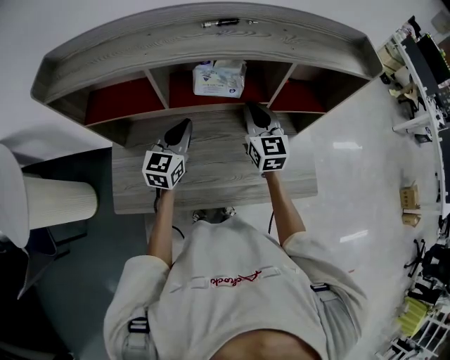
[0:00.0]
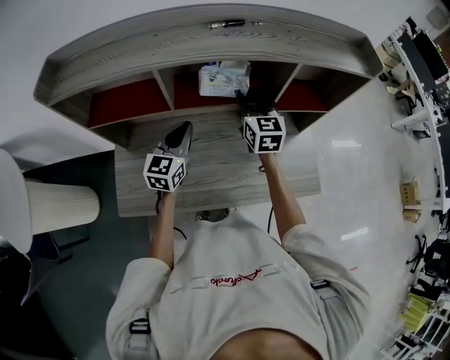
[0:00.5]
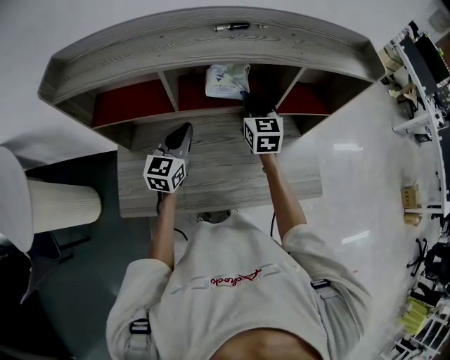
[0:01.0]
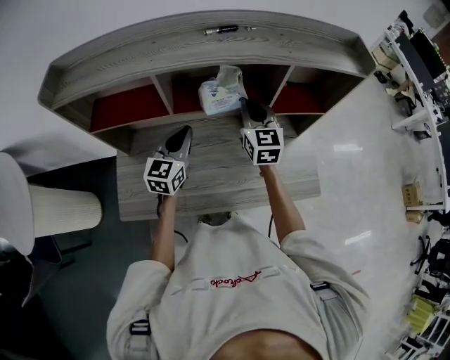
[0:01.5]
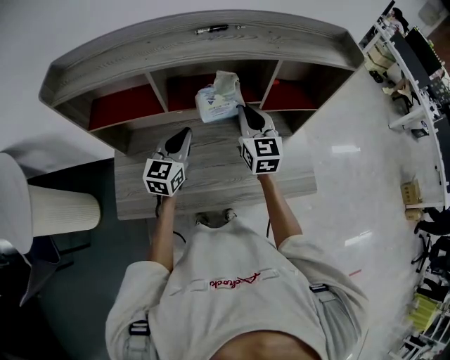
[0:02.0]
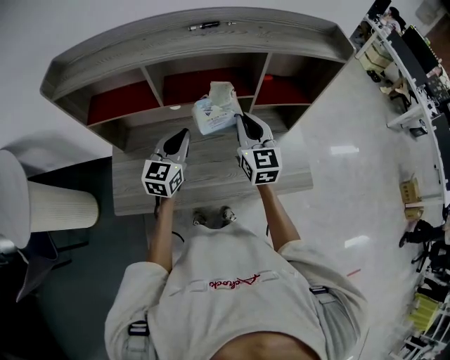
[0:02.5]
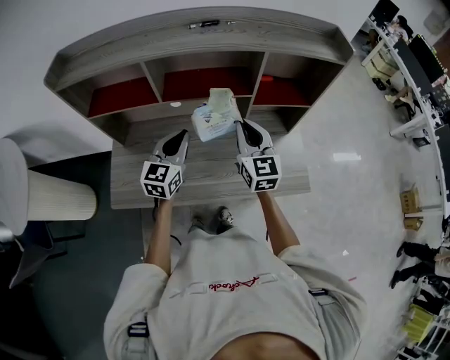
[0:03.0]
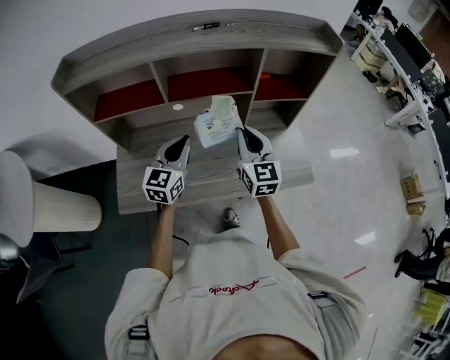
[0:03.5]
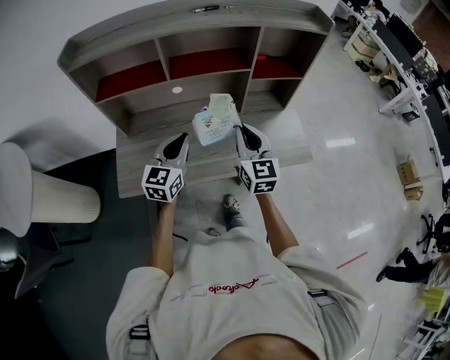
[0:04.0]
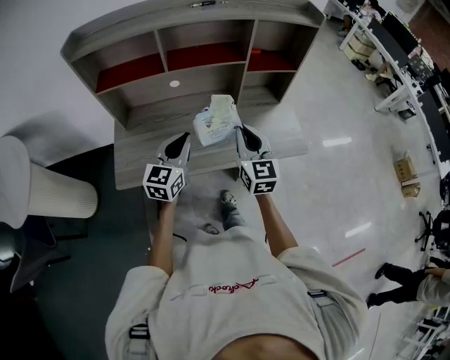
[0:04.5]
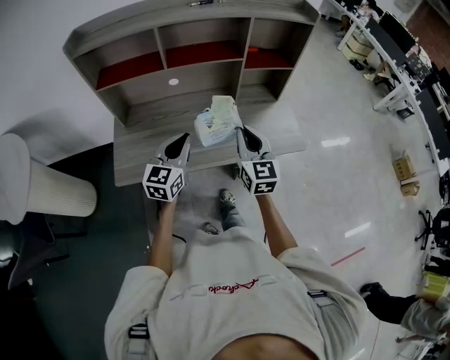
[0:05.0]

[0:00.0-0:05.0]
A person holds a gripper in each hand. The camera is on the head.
0:00.0 to 0:02.5: The two grippers go roughly 5 cm backward. The right gripper opens, then closes once more.
0:02.5 to 0:05.0: Both grippers move backward, some 20 cm.

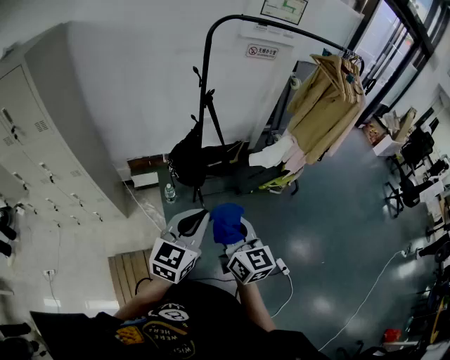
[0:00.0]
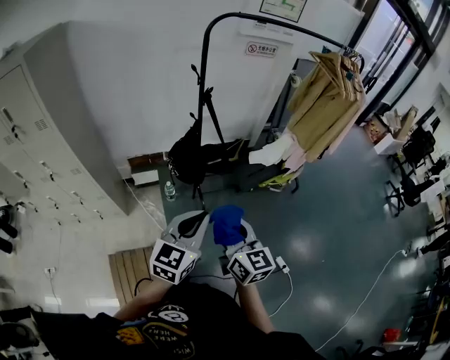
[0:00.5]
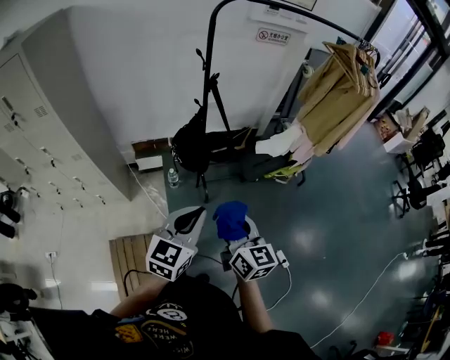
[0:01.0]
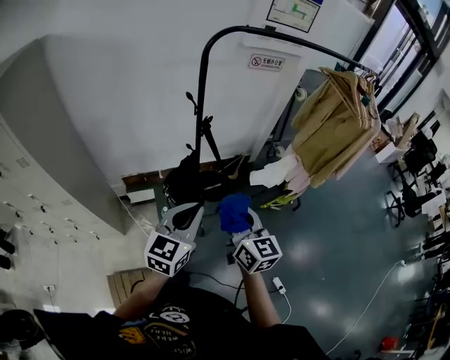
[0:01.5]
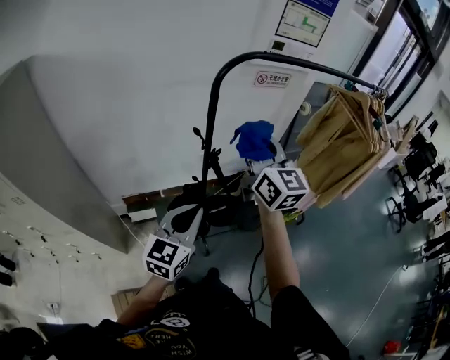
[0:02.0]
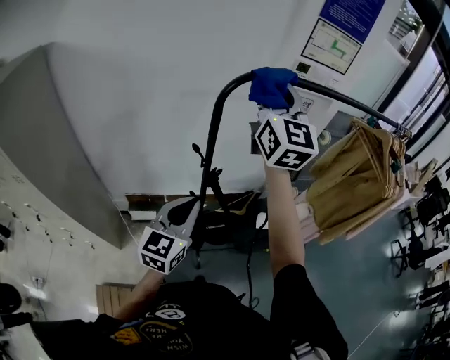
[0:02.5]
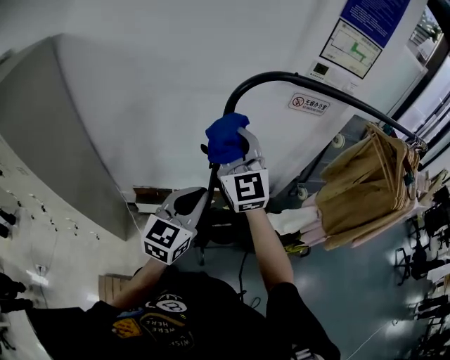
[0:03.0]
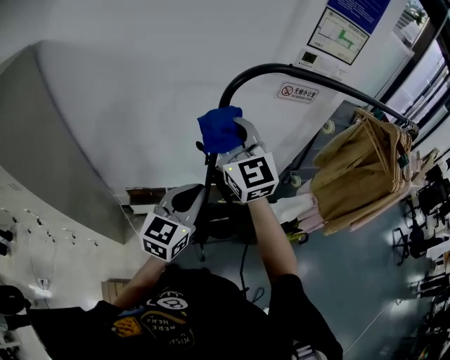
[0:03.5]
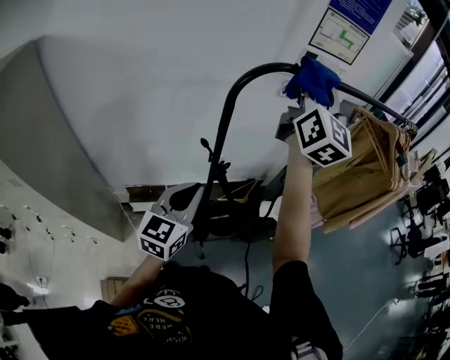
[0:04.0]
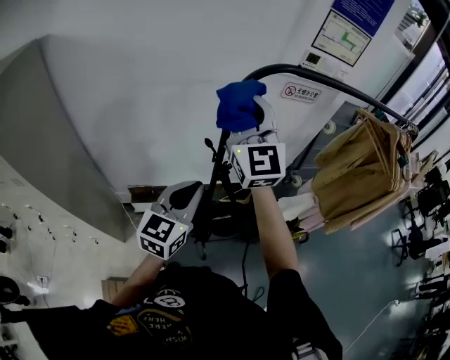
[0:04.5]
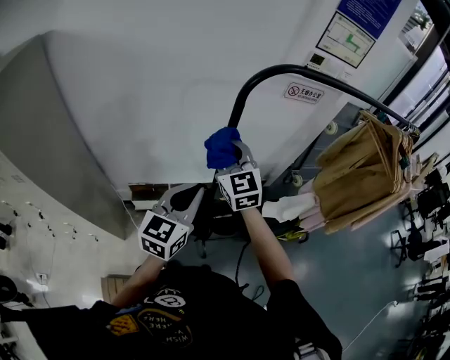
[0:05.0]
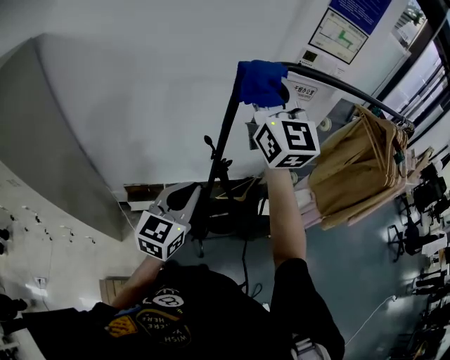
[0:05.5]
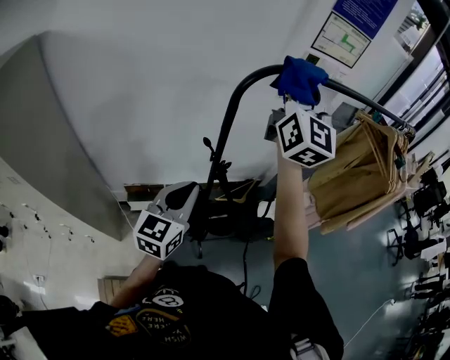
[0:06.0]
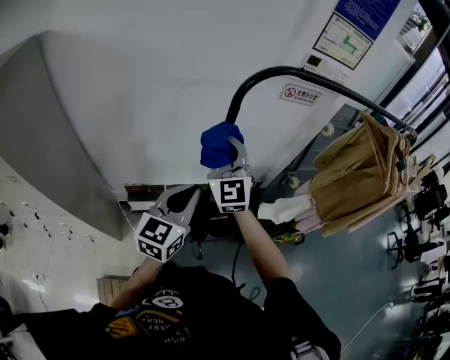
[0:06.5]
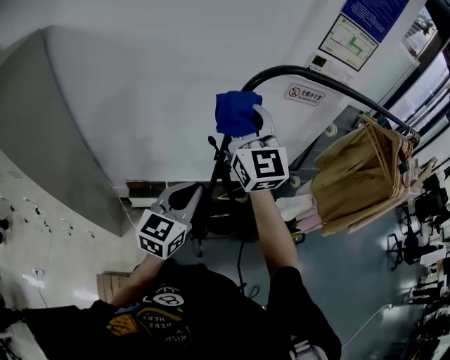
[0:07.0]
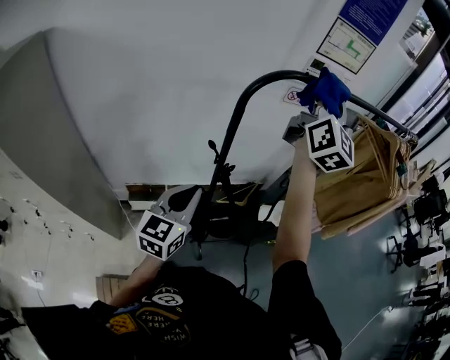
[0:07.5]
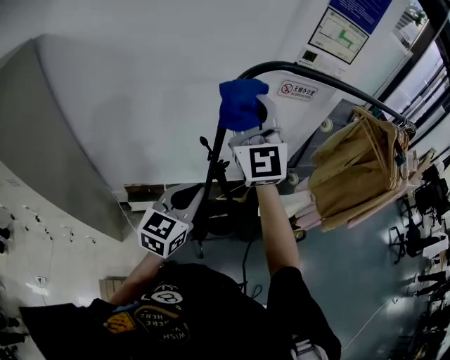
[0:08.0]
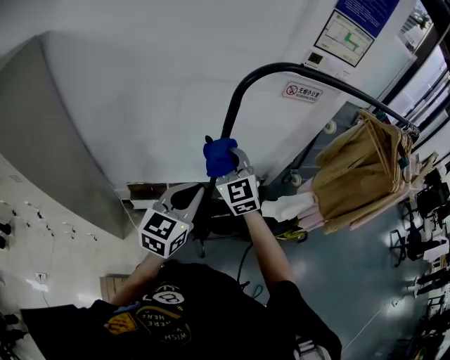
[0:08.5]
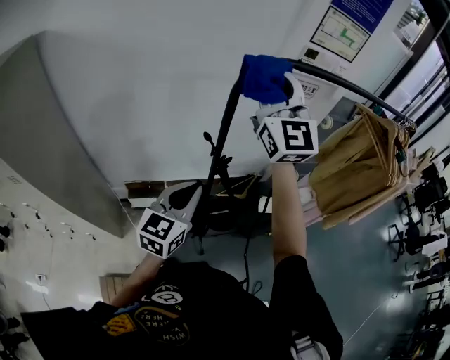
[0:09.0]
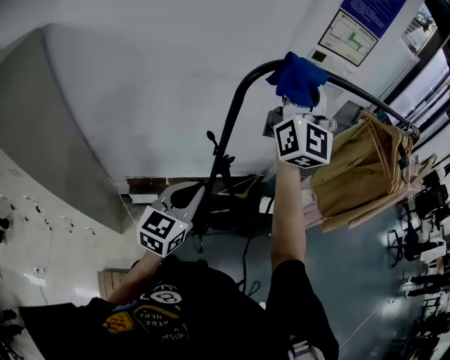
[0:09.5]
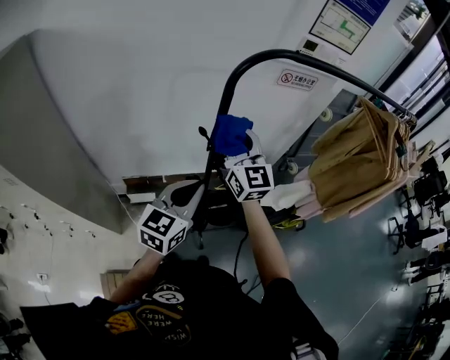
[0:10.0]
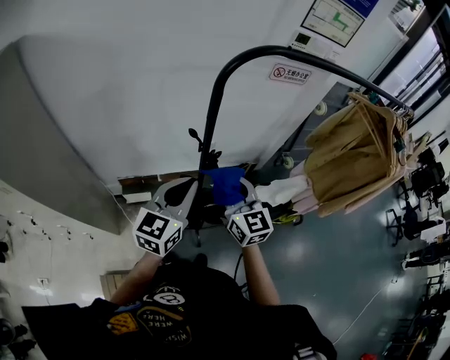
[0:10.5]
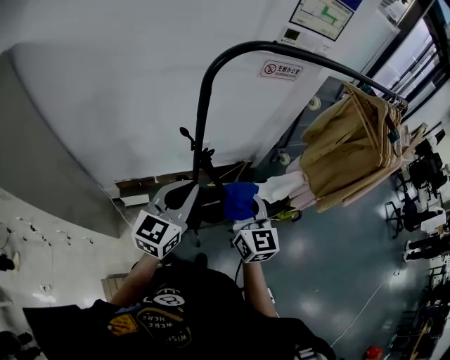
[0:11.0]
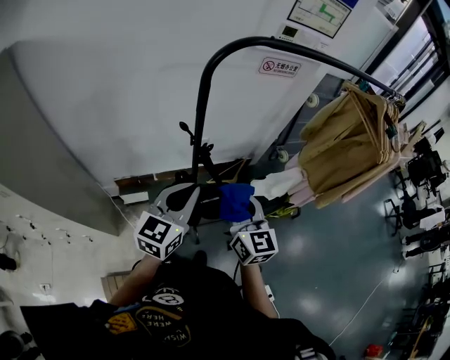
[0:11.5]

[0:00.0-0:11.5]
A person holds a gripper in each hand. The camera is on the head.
0:00.0 to 0:02.0: The right gripper goes roughly 50 cm forward and upward. The left gripper shifts some 35 cm forward.
0:02.0 to 0:04.0: The right gripper swings up and down, approximately 20 cm each way, with 2 reversals, and swivels approximately 20 degrees. The left gripper heads forward, covering some 10 cm.
0:04.0 to 0:06.0: The right gripper goes some 5 cm to the left, and reaches roughly 25 cm downward, then returns.
0:06.0 to 0:07.5: The right gripper goes approximately 5 cm to the right, and reaches approximately 25 cm downward, then returns.
0:07.5 to 0:09.5: The right gripper moves to the left, about 10 cm, and goes downward and returns, about 30 cm each way.
0:09.5 to 0:11.5: The left gripper moves roughly 5 cm. Meanwhile the right gripper shifts roughly 35 cm downward and backward, and angles its fingers downward, by approximately 40 degrees.

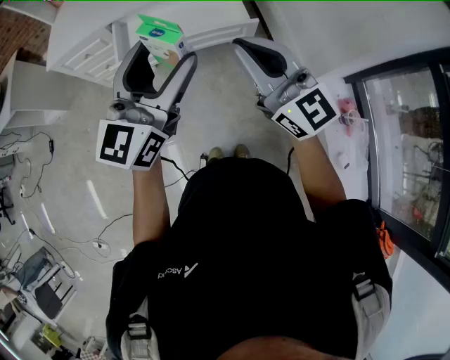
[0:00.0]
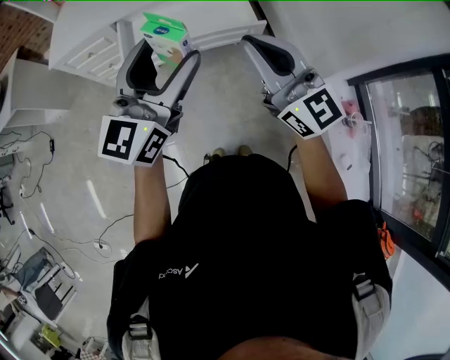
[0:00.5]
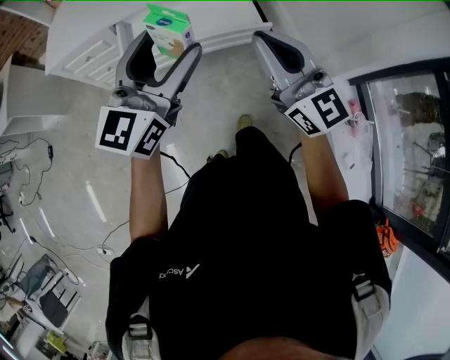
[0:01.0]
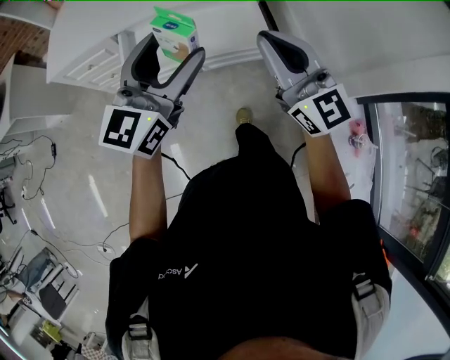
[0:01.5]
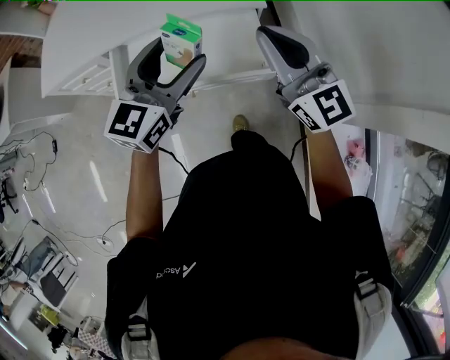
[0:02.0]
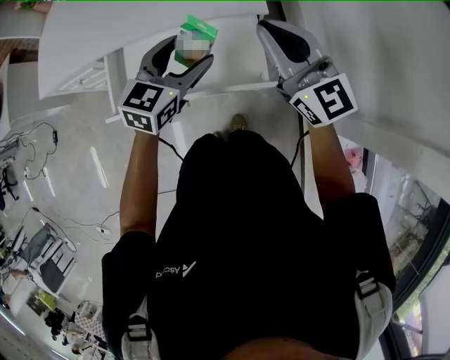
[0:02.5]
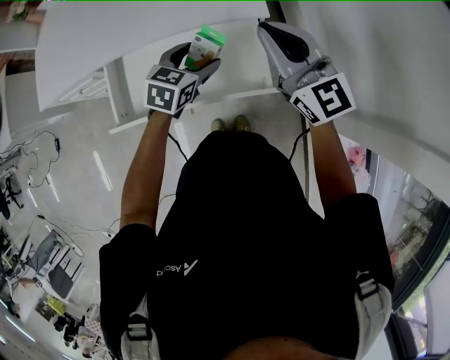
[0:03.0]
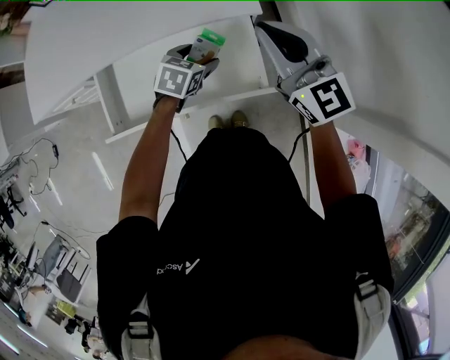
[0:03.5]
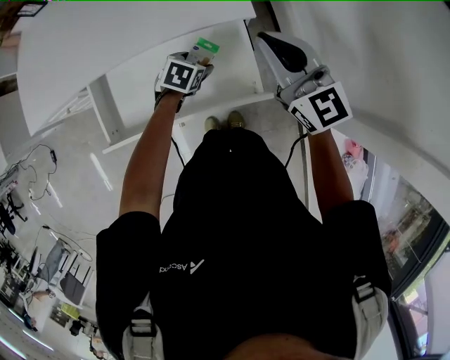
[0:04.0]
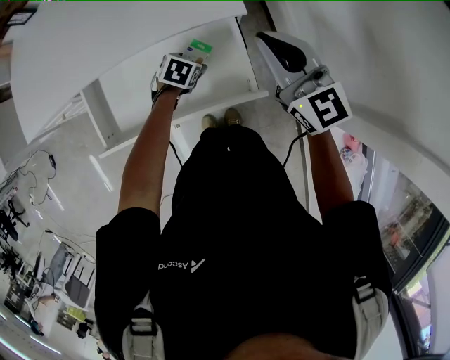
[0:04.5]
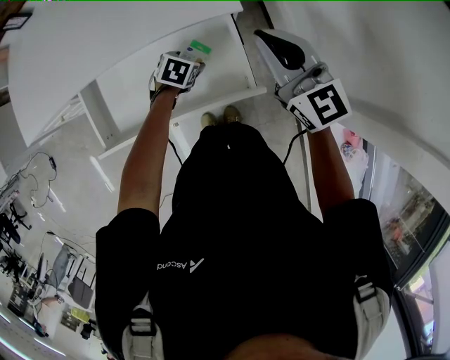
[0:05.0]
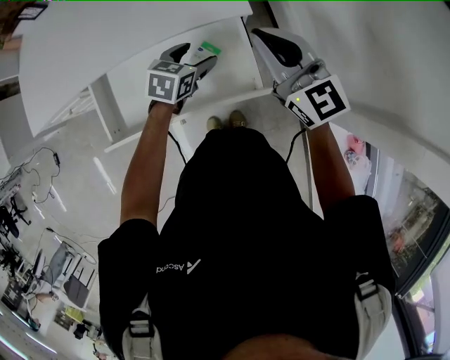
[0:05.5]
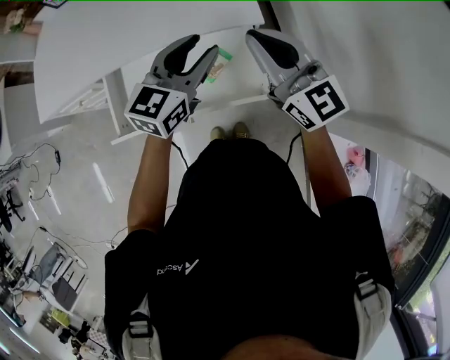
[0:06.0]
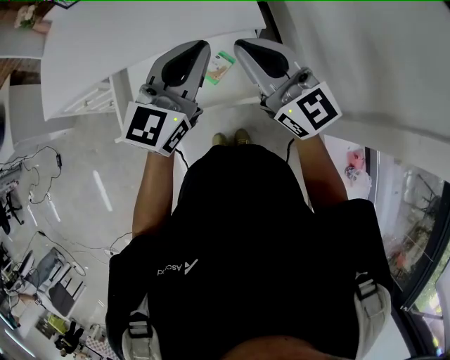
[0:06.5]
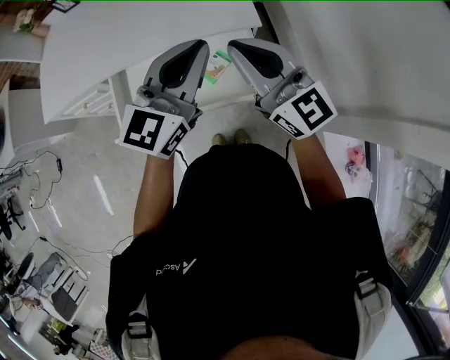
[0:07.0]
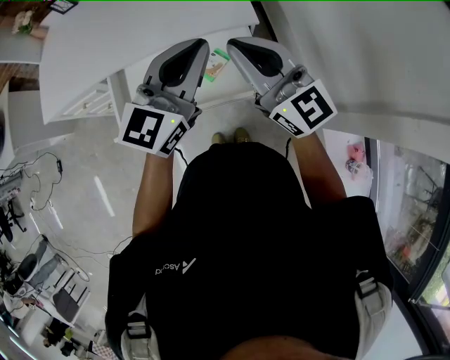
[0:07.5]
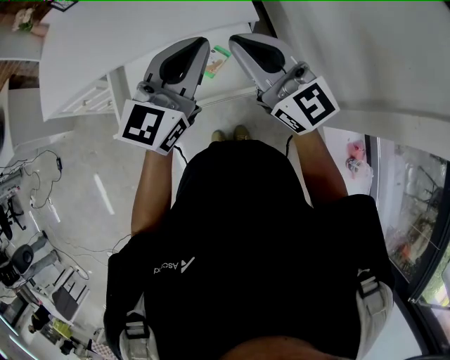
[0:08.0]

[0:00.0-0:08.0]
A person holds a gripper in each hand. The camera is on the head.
0:00.0 to 0:02.0: The grippers both shift forward by roughly 30 cm.
0:02.0 to 0:04.0: The left gripper travels downward and forward by roughly 40 cm, and points its fingers some 50 degrees further downward. The right gripper goes about 20 cm forward and downward.
0:04.0 to 0:06.0: The right gripper moves upward, some 5 cm; the left gripper goes approximately 30 cm upward, points its fingers about 50 degrees further upward, and closes its fingers.
0:06.0 to 0:08.0: The left gripper goes approximately 15 cm upward and backward, and closes. Meanwhile the right gripper shifts about 10 cm backward.

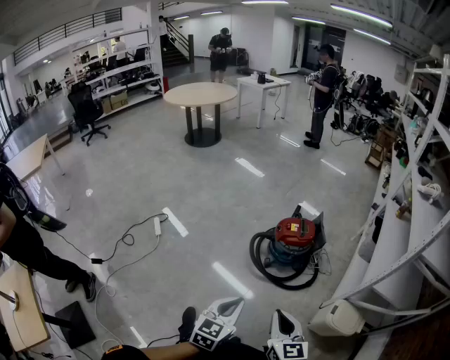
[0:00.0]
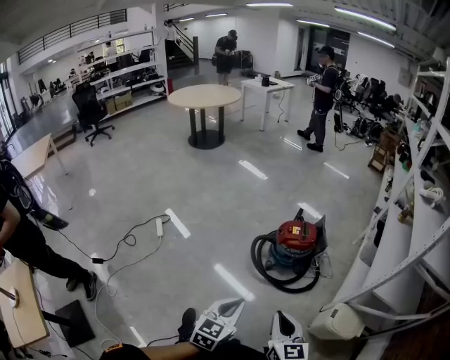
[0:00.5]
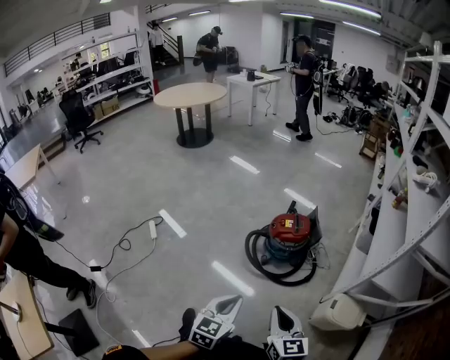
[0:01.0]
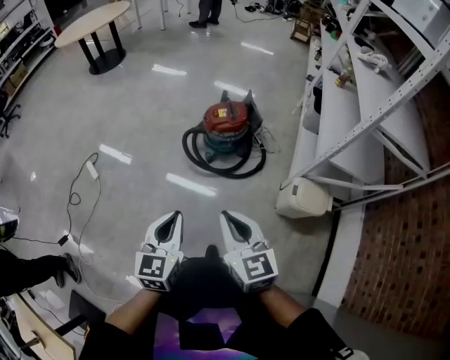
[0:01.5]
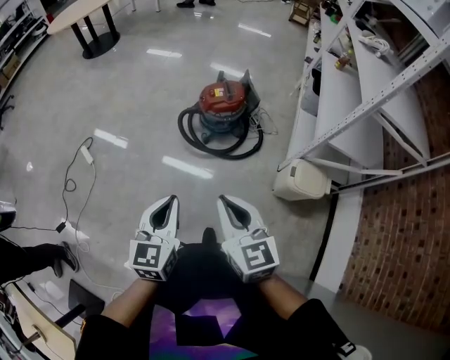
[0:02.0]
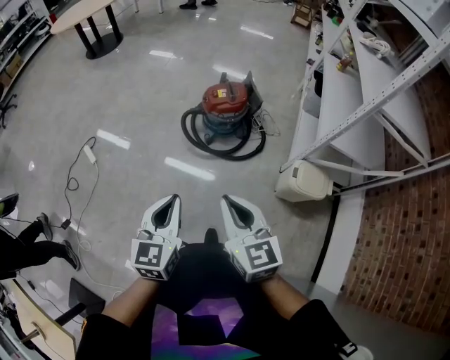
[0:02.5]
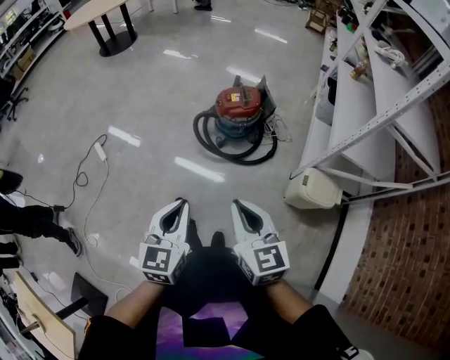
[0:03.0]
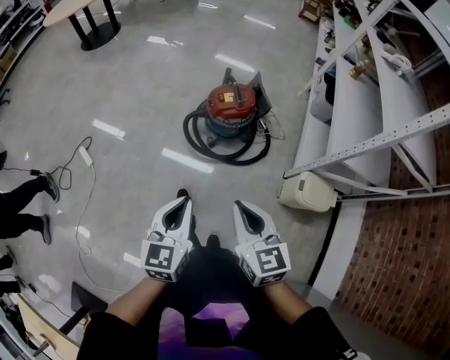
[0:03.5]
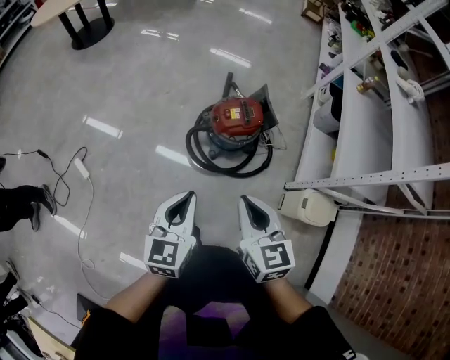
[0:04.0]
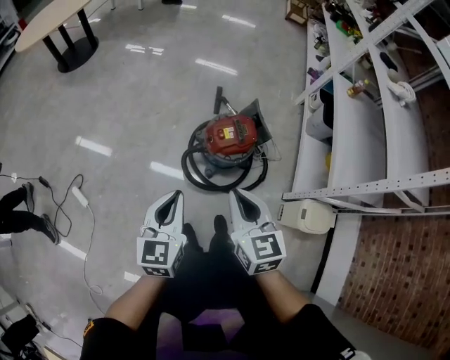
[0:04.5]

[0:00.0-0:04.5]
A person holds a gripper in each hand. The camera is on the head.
0:00.0 to 0:02.0: The grippers stay close to where they were, moving slightly.
0:02.0 to 0:04.5: The grippers both shift forward by roughly 35 cm.
